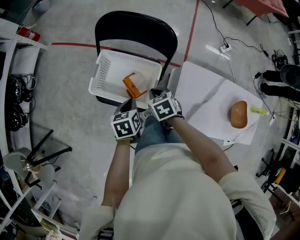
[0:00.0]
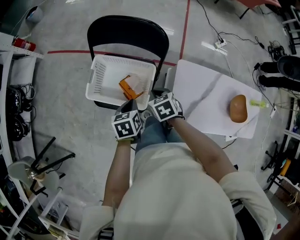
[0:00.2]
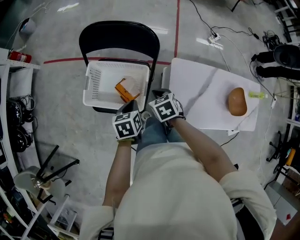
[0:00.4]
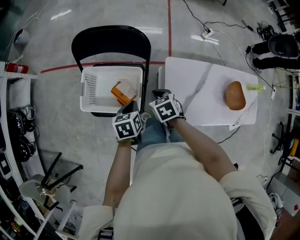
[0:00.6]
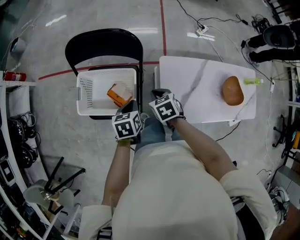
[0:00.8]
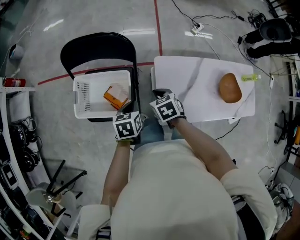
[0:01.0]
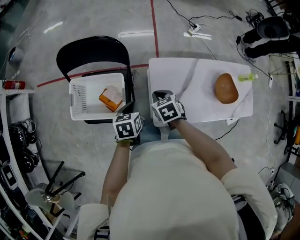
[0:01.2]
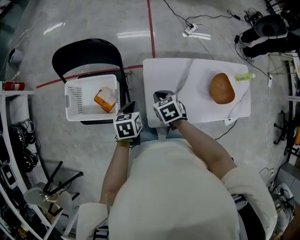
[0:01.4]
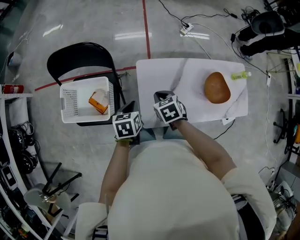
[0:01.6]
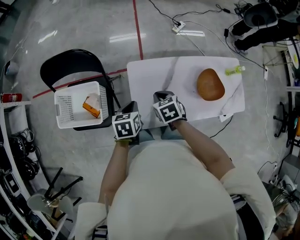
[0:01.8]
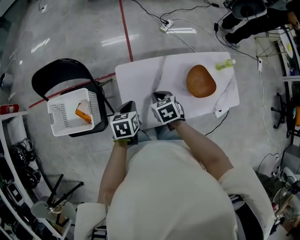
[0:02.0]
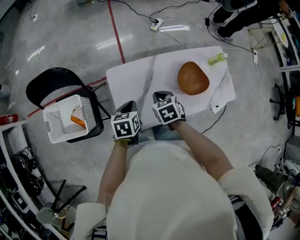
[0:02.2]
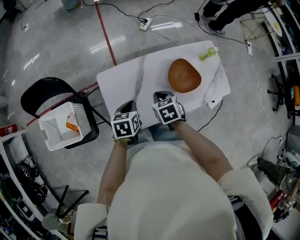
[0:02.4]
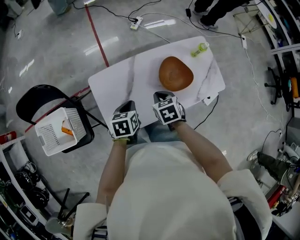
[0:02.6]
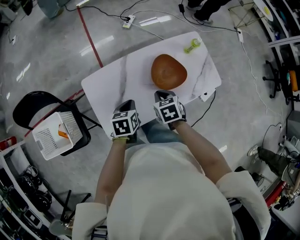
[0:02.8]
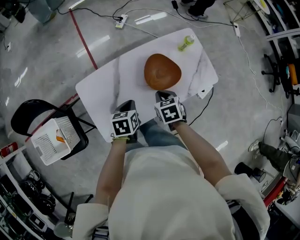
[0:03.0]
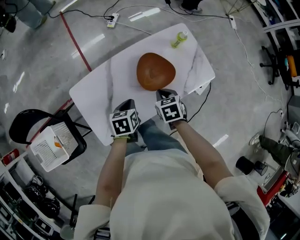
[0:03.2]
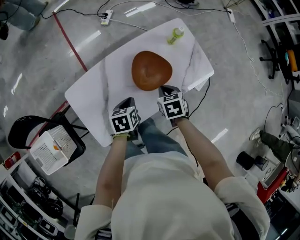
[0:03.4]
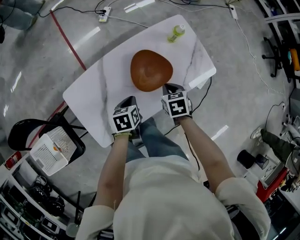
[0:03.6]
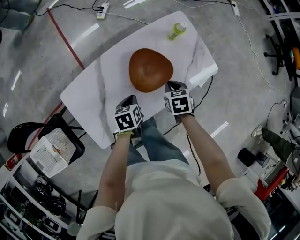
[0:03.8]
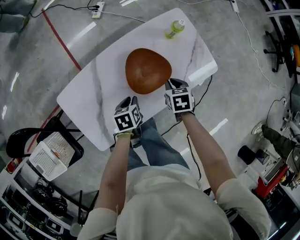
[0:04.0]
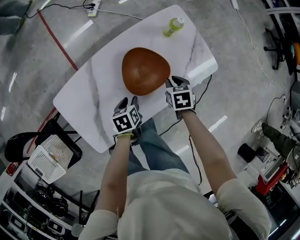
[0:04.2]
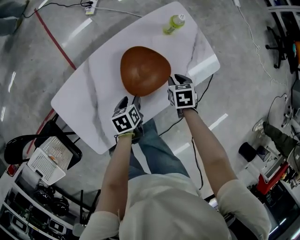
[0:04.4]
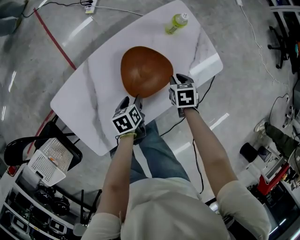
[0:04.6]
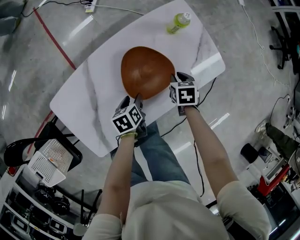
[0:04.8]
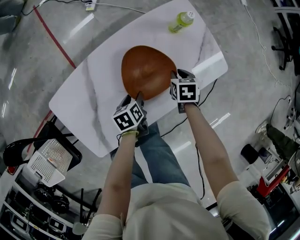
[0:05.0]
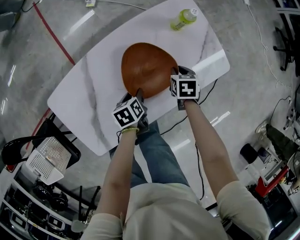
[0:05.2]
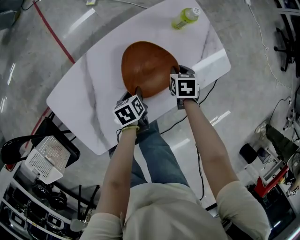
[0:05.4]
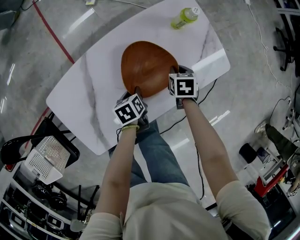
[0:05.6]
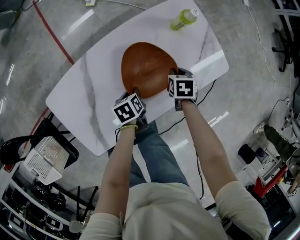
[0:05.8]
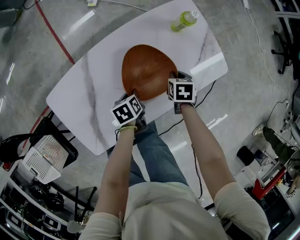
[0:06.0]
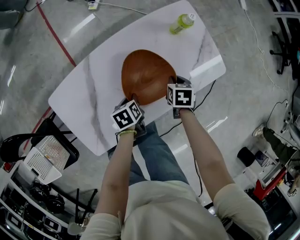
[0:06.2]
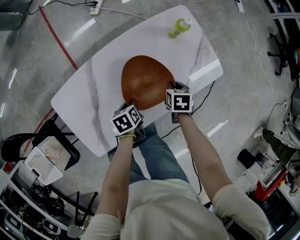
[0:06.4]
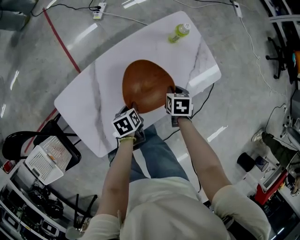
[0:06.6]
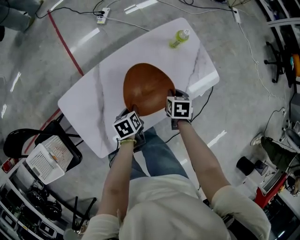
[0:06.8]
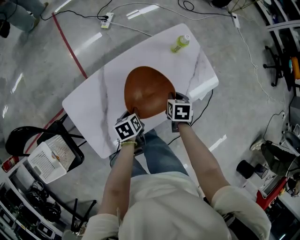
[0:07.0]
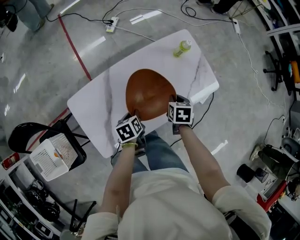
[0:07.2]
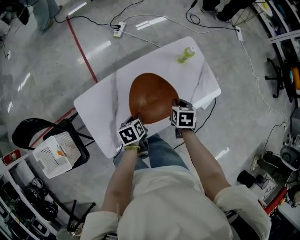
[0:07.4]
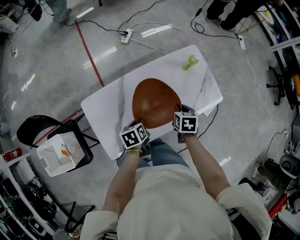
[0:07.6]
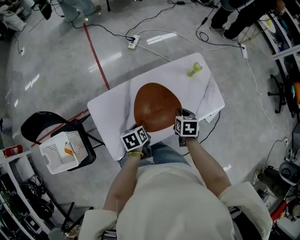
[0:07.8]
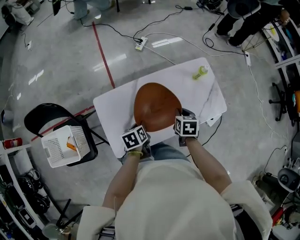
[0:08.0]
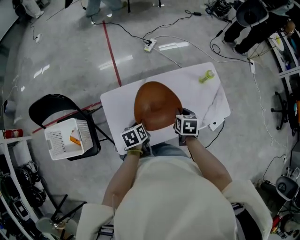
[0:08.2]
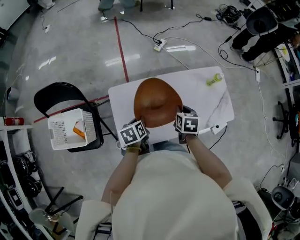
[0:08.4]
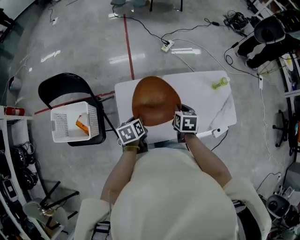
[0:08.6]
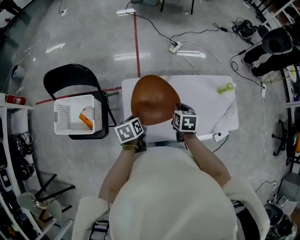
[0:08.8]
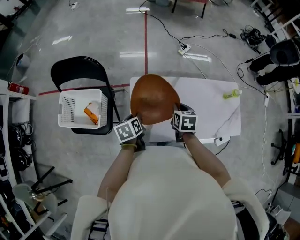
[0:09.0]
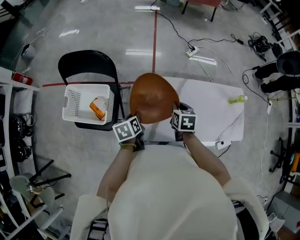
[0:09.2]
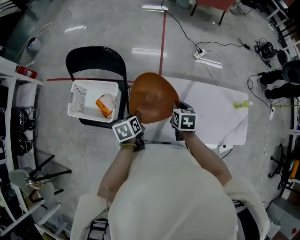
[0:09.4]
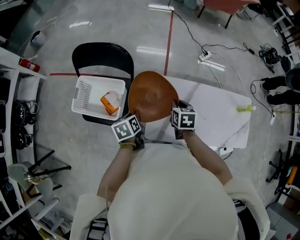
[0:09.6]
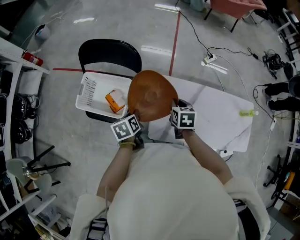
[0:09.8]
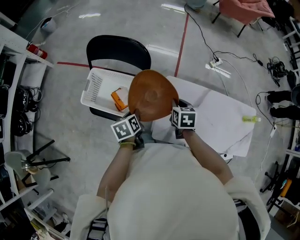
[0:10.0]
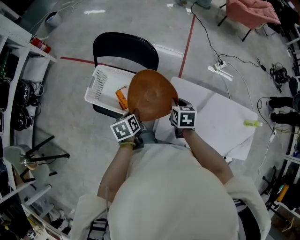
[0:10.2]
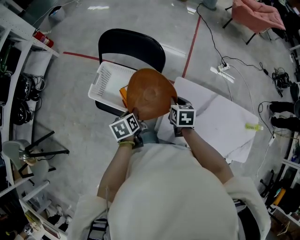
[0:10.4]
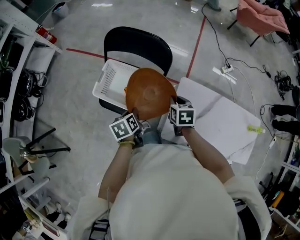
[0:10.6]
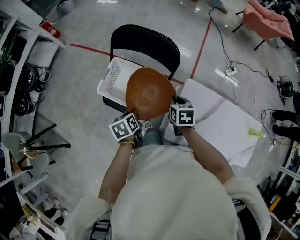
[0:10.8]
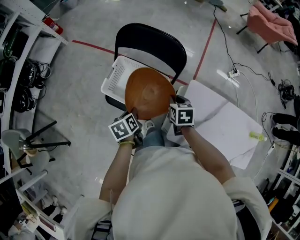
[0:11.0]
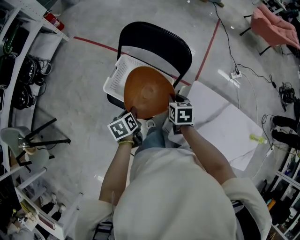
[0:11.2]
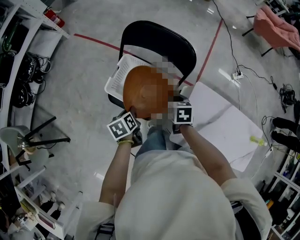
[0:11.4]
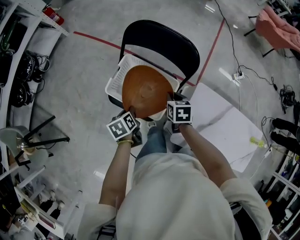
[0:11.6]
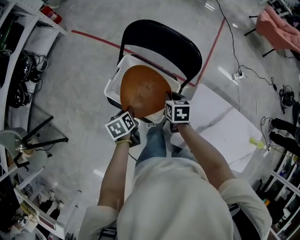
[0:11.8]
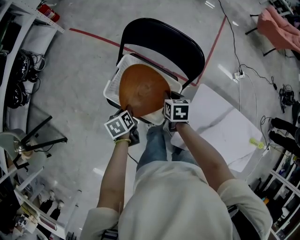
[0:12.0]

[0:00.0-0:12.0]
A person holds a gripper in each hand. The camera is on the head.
0:00.0 to 0:01.6: The two grippers go about 30 cm to the right. The left gripper turns by approximately 20 degrees.
0:01.6 to 0:03.0: The left gripper ends up roughly 35 cm from where it was, and turns by roughly 20 degrees. The right gripper ends up roughly 40 cm from where it was, and changes its angle by roughly 30 degrees.
0:03.0 to 0:04.4: The left gripper goes approximately 20 cm downward, to the right and forward, and opens. Meanwhile the right gripper shifts about 25 cm to the right, downward and forward, and swivels about 20 degrees.
0:04.4 to 0:06.0: The two grippers go some 5 cm downward. The left gripper closes.
0:06.0 to 0:07.6: Both grippers travel together upward, roughly 20 cm.
0:07.6 to 0:09.0: The right gripper shifts by roughly 30 cm, and changes its angle by approximately 30 degrees; the left gripper changes place by about 30 cm, and changes its angle by roughly 30 degrees.
0:09.0 to 0:10.4: The two grippers go some 30 cm to the left. The left gripper changes its angle by roughly 20 degrees. Meanwhile the right gripper swivels roughly 20 degrees.
0:10.4 to 0:12.0: The right gripper shifts about 25 cm to the left, forward and downward, while the left gripper travels to the left, downward and forward by some 20 cm.

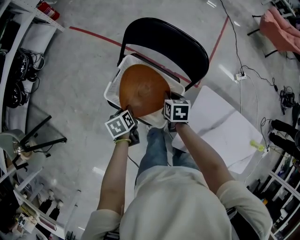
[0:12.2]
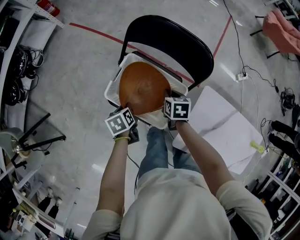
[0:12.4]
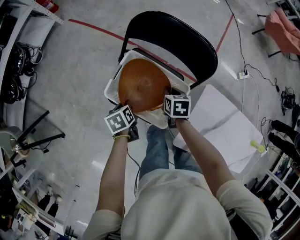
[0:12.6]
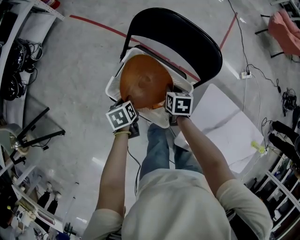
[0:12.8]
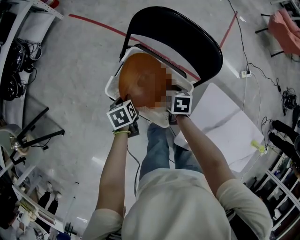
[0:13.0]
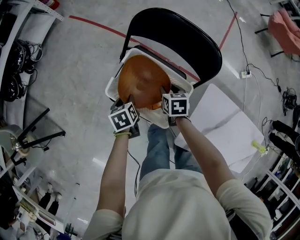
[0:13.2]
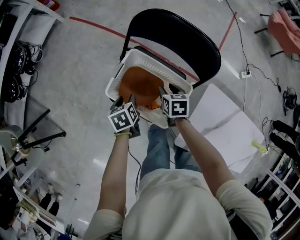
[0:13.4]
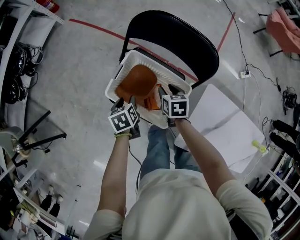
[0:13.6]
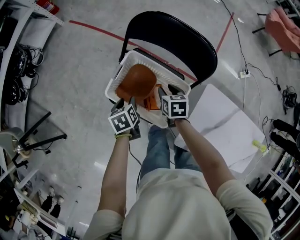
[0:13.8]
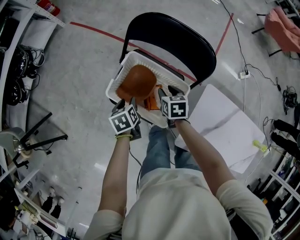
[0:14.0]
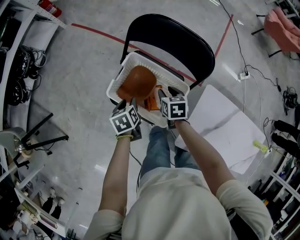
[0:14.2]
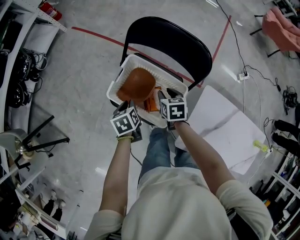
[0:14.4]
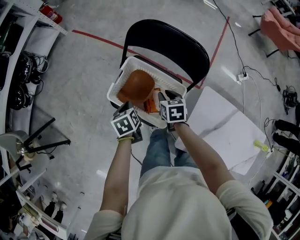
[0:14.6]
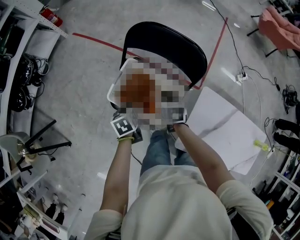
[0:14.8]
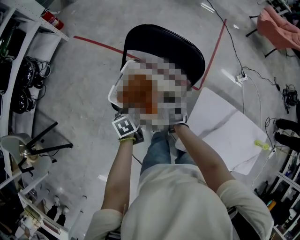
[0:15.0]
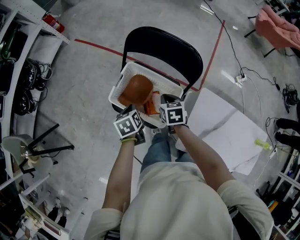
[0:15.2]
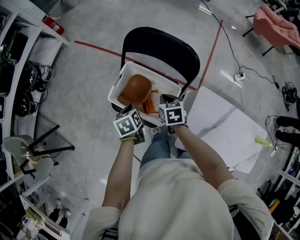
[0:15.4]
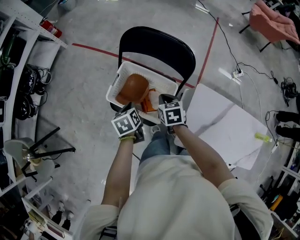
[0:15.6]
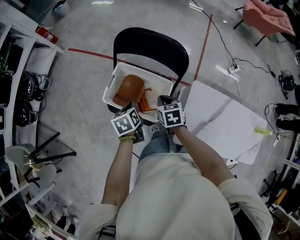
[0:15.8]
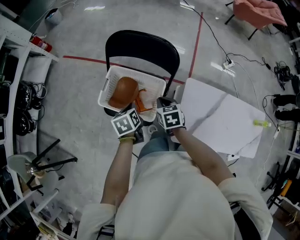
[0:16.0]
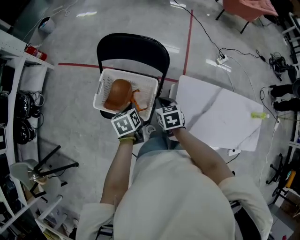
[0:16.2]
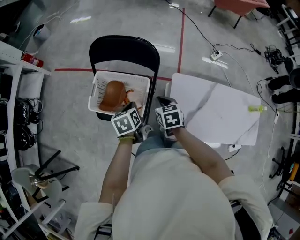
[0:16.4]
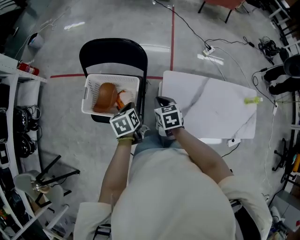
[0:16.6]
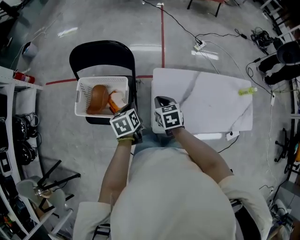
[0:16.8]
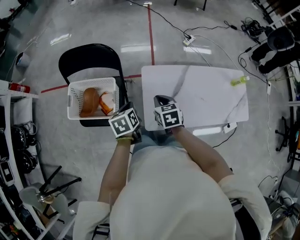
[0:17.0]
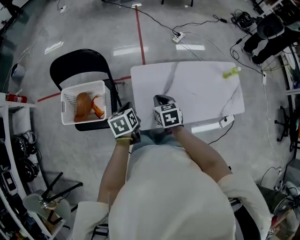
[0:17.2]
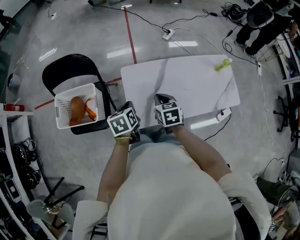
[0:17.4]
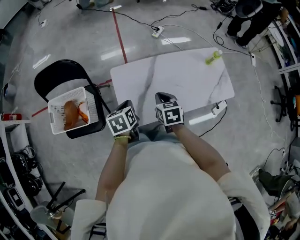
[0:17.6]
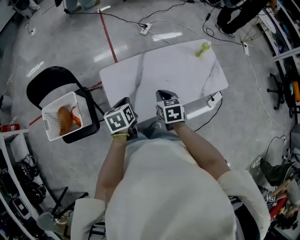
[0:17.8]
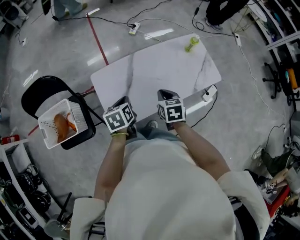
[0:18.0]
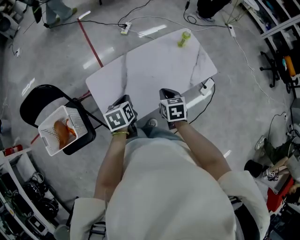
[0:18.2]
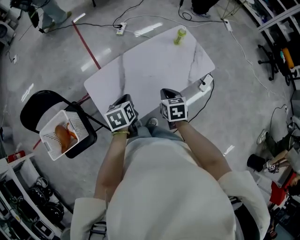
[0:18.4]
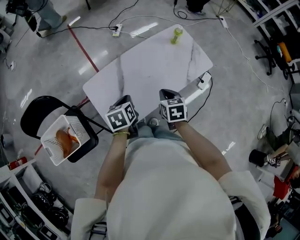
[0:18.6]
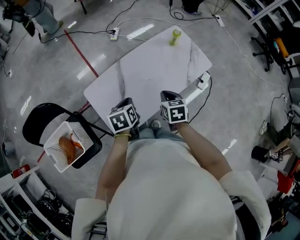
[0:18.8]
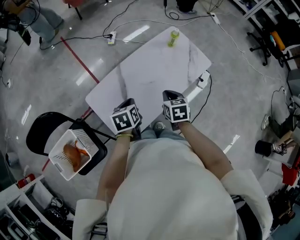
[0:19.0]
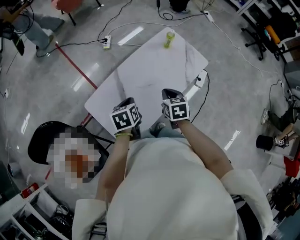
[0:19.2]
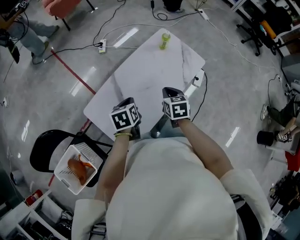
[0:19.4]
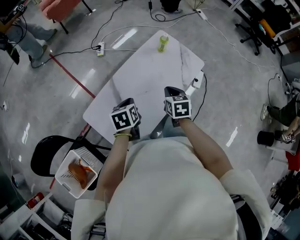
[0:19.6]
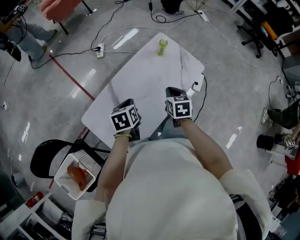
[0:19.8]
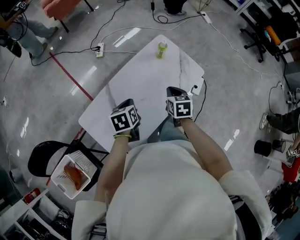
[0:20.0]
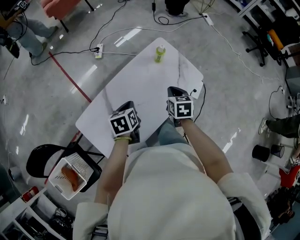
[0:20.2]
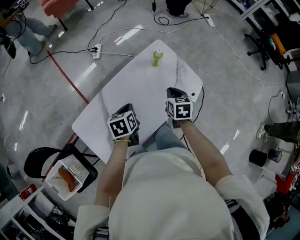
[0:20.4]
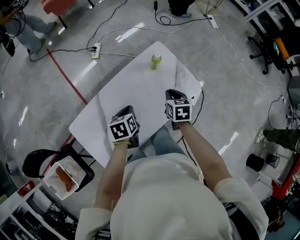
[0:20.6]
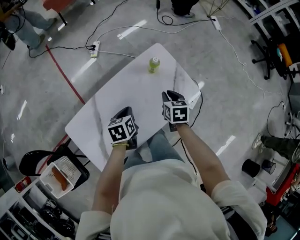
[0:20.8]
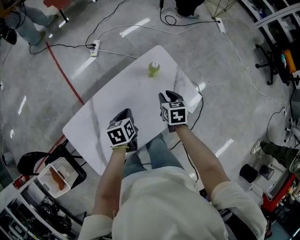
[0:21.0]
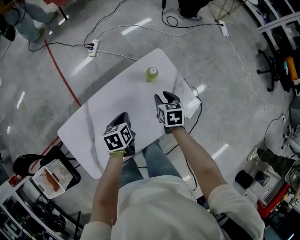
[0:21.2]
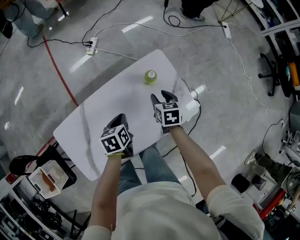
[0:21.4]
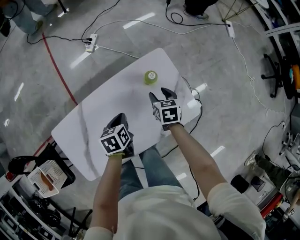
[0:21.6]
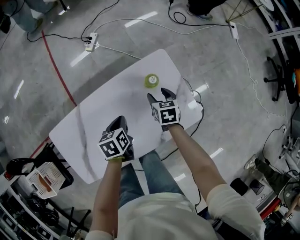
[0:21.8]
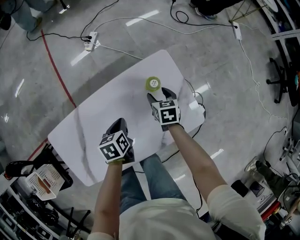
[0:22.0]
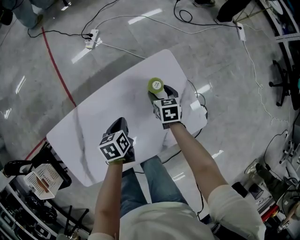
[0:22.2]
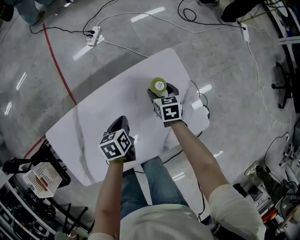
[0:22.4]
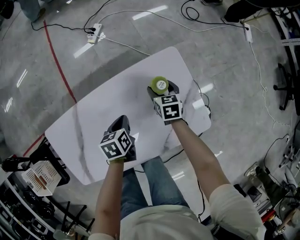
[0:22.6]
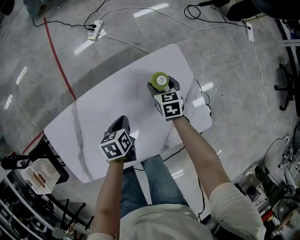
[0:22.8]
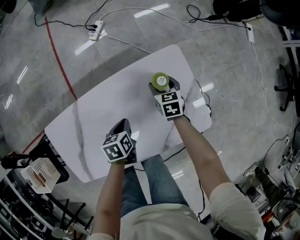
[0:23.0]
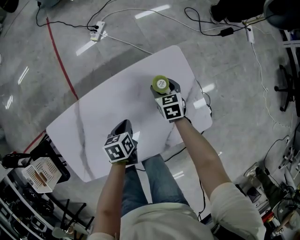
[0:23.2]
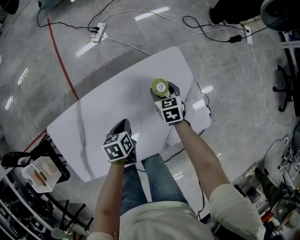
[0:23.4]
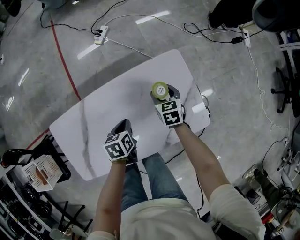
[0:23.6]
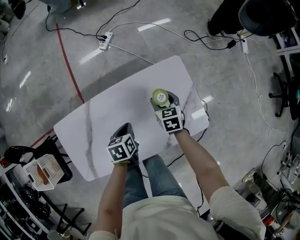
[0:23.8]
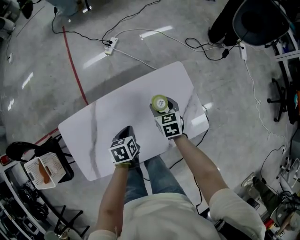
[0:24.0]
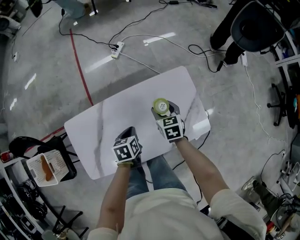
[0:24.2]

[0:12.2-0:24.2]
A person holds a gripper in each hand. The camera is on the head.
0:12.2 to 0:13.8: The left gripper opens.
0:13.8 to 0:15.2: Both grippers move upward, approximately 5 cm. The left gripper closes; the right gripper closes.
0:15.2 to 0:16.6: The right gripper moves to the right, backward and upward, some 20 cm. The left gripper moves to the right, roughly 20 cm, and rotates about 20 degrees.
0:16.6 to 0:18.2: The two grippers travel together, approximately 50 cm. The left gripper changes its angle by roughly 40 degrees. The right gripper rotates approximately 40 degrees.
0:18.2 to 0:19.8: The right gripper is displaced forward and to the right by some 15 cm, and changes its angle by approximately 20 degrees, while the left gripper heads forward, covering about 15 cm, and changes its angle by roughly 20 degrees.
0:19.8 to 0:21.2: The right gripper heads forward, downward and to the right, covering roughly 30 cm, and opens up; the left gripper shifts some 25 cm forward, to the right and downward.
0:21.2 to 0:22.6: The right gripper goes some 20 cm downward and forward, and opens, while the left gripper shifts roughly 15 cm downward.
0:22.6 to 0:24.2: The left gripper moves upward, backward and to the left, approximately 15 cm; the right gripper is displaced upward, to the left and backward by roughly 20 cm.
